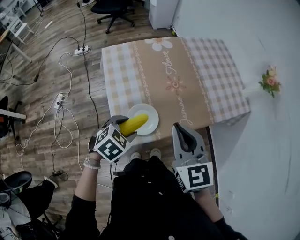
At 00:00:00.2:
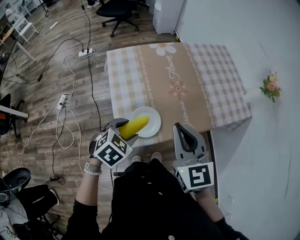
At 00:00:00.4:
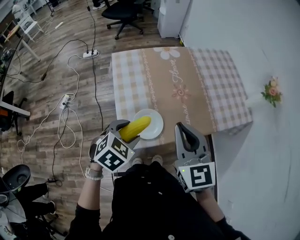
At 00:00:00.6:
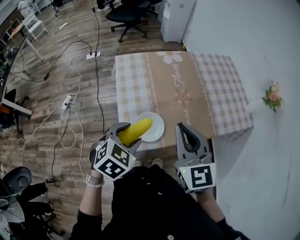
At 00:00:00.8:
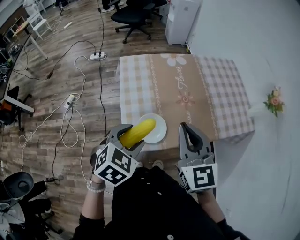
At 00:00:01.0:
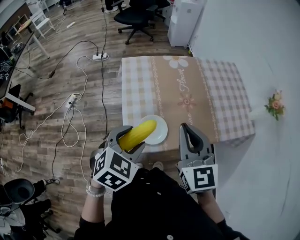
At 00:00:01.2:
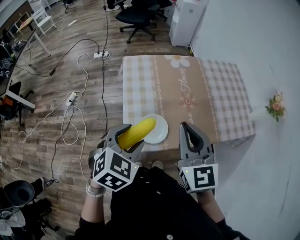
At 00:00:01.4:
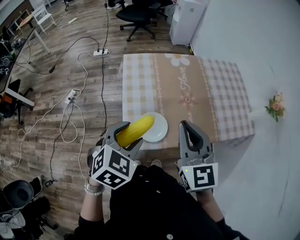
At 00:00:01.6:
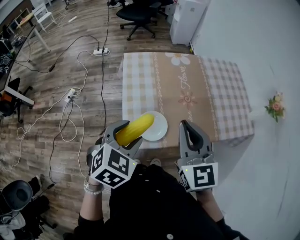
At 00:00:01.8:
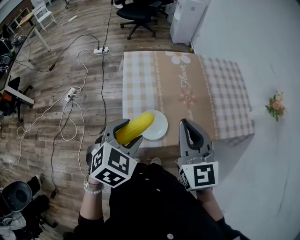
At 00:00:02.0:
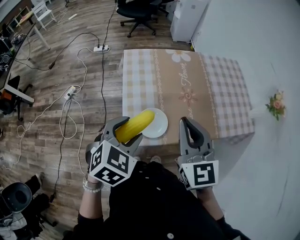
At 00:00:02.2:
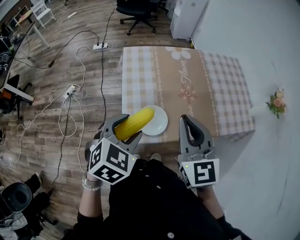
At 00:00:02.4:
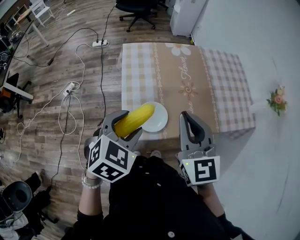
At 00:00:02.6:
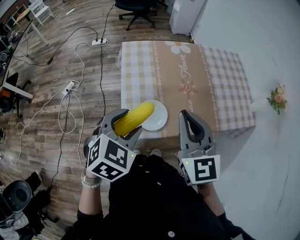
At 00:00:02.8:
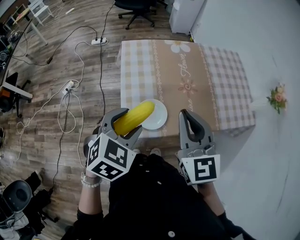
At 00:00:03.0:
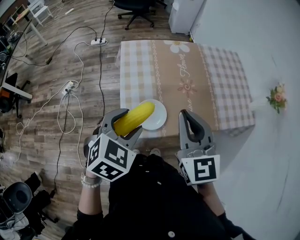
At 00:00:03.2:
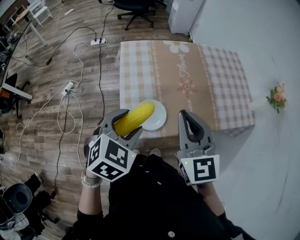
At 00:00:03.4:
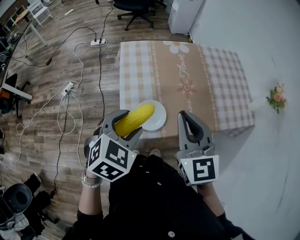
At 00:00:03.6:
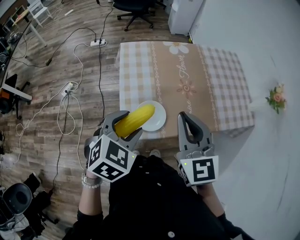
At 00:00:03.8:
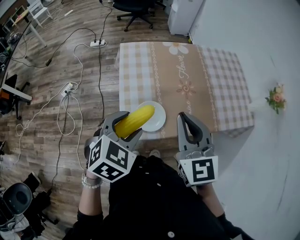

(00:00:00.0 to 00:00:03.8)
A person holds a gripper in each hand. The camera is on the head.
00:00:00.0 - 00:00:01.2: The left gripper is displaced upward by some 15 cm, and changes its angle by roughly 20 degrees. Meanwhile the right gripper moves roughly 5 cm.
00:00:01.2 - 00:00:03.8: Neither gripper changes place.

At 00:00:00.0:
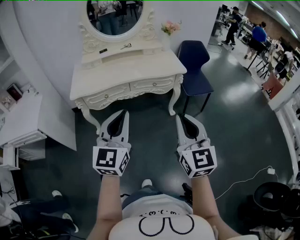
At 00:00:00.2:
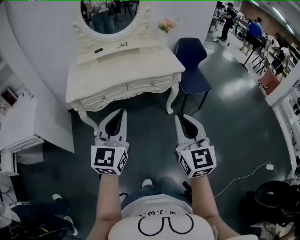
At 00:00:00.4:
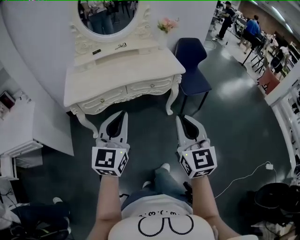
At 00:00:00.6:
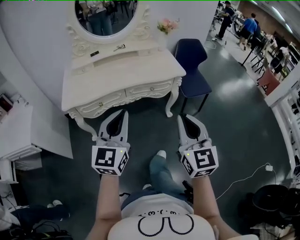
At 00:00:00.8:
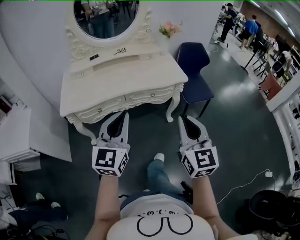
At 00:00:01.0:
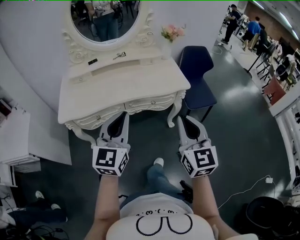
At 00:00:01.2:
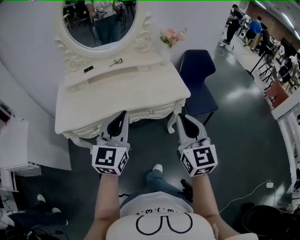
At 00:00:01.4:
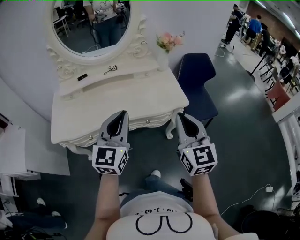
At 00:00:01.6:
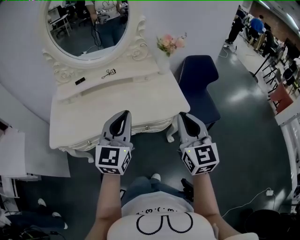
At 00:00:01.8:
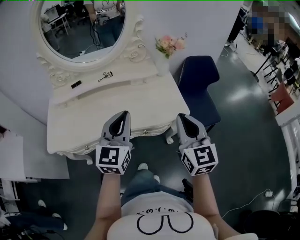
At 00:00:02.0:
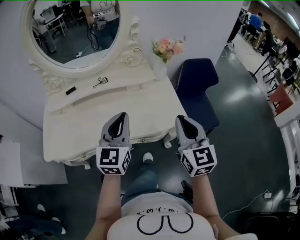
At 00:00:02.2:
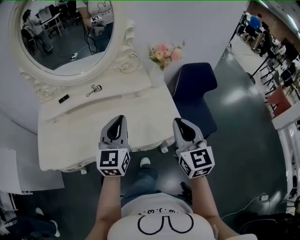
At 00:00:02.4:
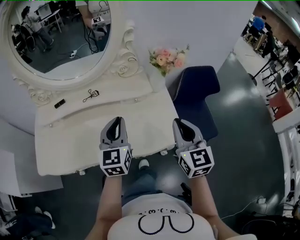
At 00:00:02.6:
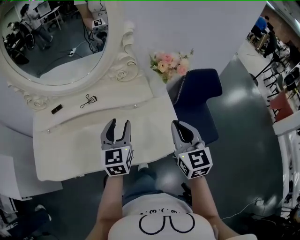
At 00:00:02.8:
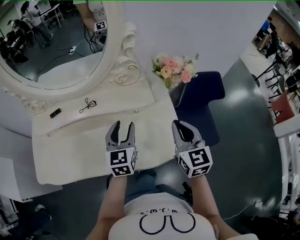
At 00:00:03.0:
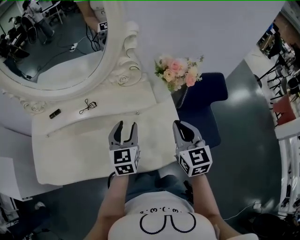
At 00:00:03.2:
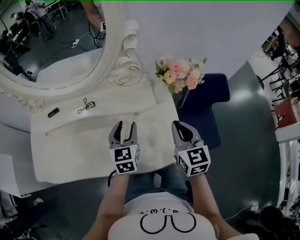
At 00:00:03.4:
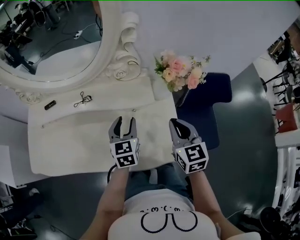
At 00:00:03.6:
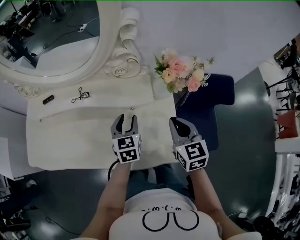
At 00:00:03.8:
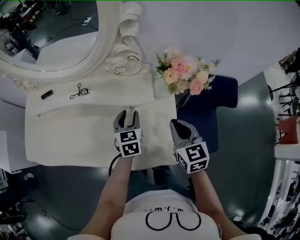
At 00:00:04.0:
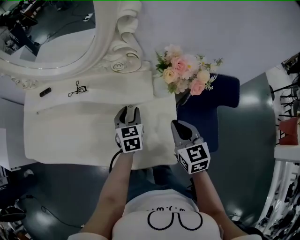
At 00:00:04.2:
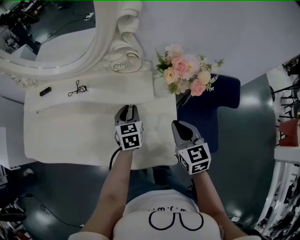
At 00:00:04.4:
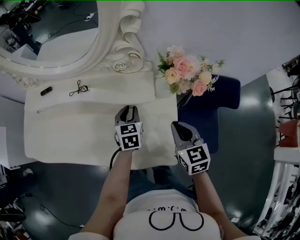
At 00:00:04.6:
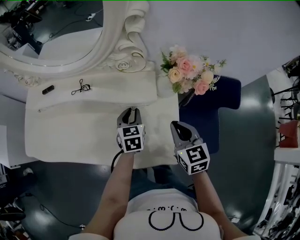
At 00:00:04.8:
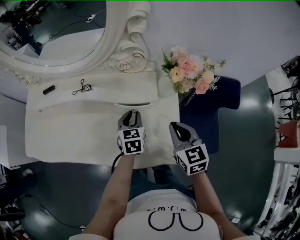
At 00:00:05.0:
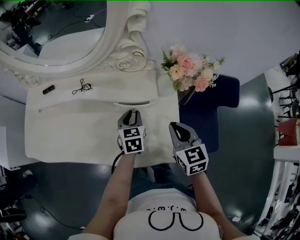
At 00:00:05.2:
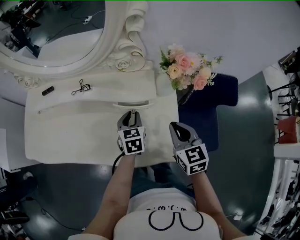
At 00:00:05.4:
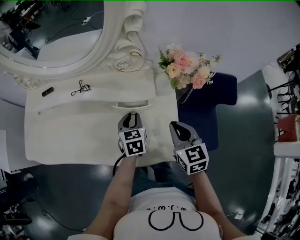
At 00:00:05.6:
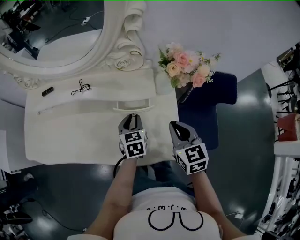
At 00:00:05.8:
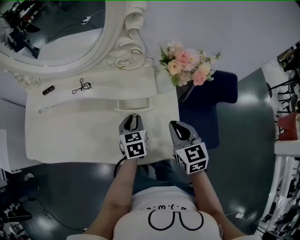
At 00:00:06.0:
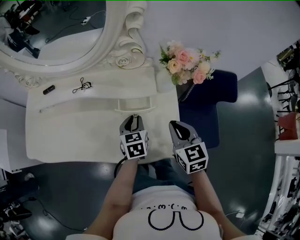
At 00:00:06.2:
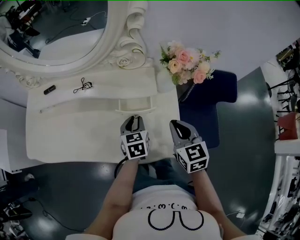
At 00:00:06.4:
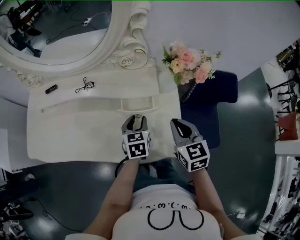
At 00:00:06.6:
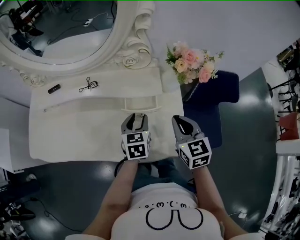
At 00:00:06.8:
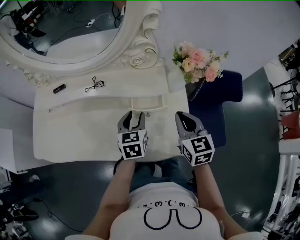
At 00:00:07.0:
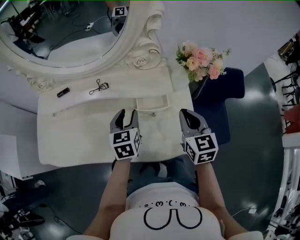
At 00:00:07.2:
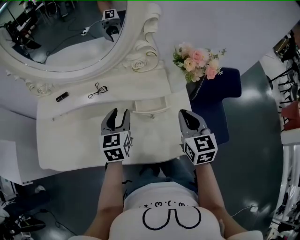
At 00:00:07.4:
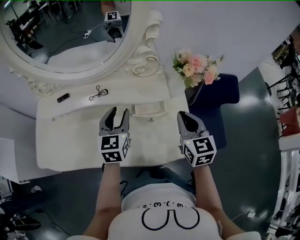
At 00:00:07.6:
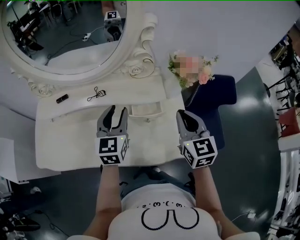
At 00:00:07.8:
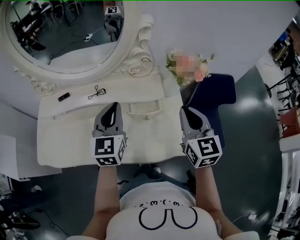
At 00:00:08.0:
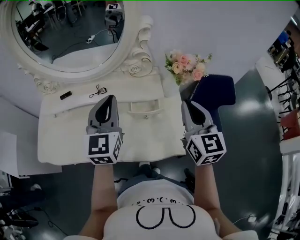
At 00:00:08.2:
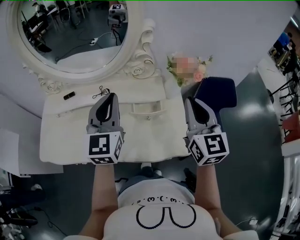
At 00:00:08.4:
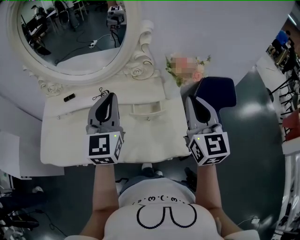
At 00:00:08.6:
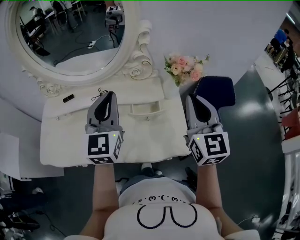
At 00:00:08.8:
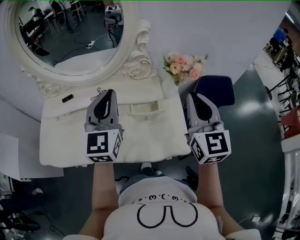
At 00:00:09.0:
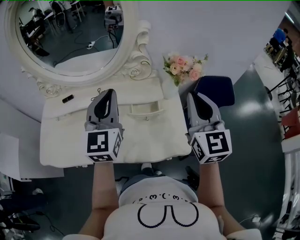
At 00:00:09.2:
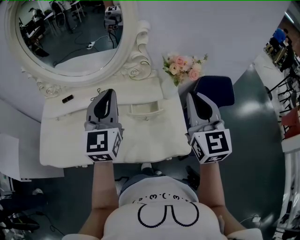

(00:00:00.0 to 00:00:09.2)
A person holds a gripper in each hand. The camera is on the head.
00:00:00.0 - 00:00:01.6: The pair of grippers is taken forward, about 40 cm.
00:00:01.6 - 00:00:03.0: The left gripper is displaced forward and downward by some 35 cm, turns by some 30 degrees, and opens up. Meanwhile the right gripper shifts roughly 30 cm forward.
00:00:03.0 - 00:00:04.6: The right gripper shifts some 10 cm downward, and rotates roughly 20 degrees, while the left gripper moves downward, to the right and forward, roughly 15 cm, rotates roughly 20 degrees, and closes its fingers.
00:00:04.6 - 00:00:06.2: The left gripper is displaced backward by approximately 5 cm.
00:00:06.2 - 00:00:07.6: The left gripper shifts approximately 20 cm upward and to the left, and turns by about 30 degrees, while the right gripper travels upward by approximately 10 cm.
00:00:07.6 - 00:00:09.2: The two grippers go approximately 15 cm upward. The left gripper closes up.

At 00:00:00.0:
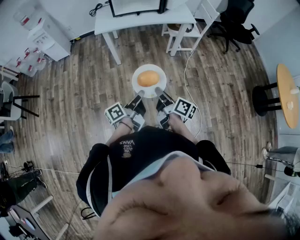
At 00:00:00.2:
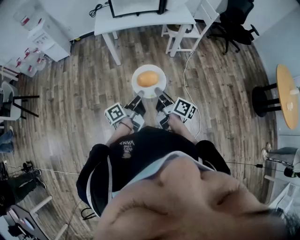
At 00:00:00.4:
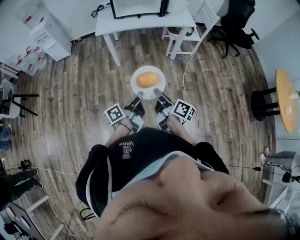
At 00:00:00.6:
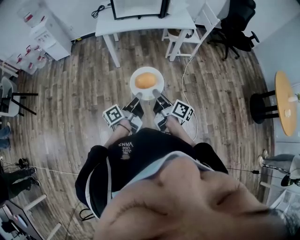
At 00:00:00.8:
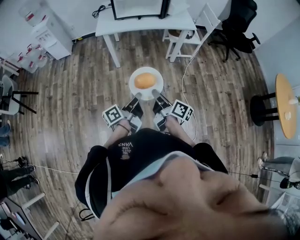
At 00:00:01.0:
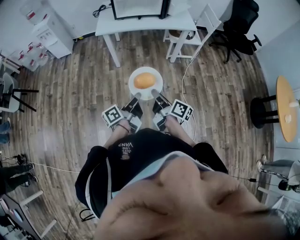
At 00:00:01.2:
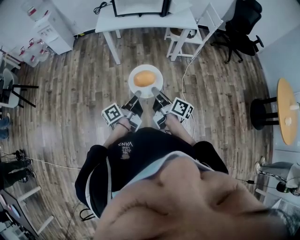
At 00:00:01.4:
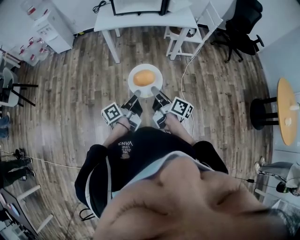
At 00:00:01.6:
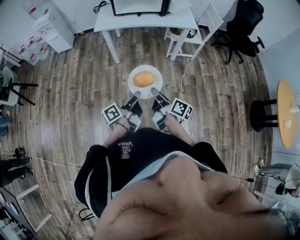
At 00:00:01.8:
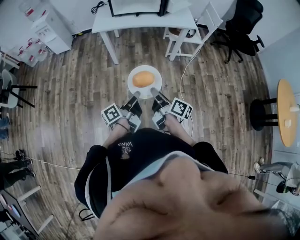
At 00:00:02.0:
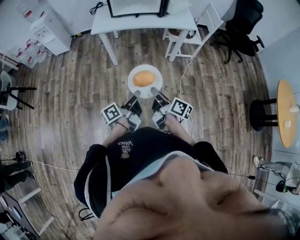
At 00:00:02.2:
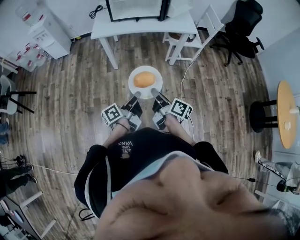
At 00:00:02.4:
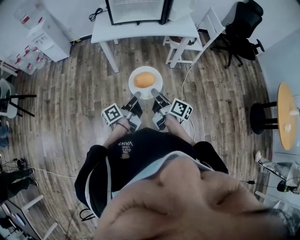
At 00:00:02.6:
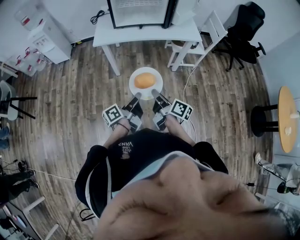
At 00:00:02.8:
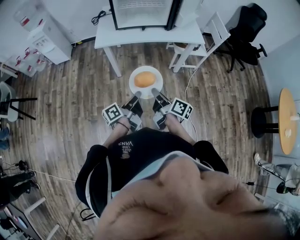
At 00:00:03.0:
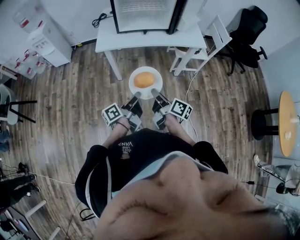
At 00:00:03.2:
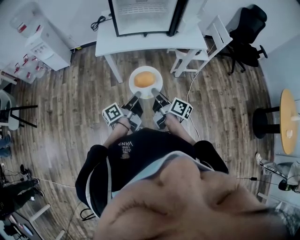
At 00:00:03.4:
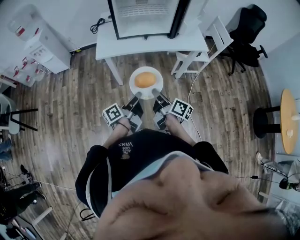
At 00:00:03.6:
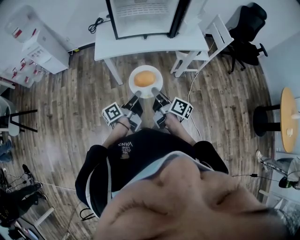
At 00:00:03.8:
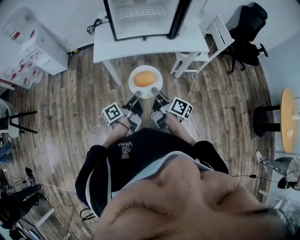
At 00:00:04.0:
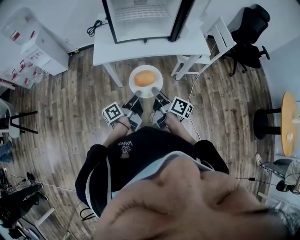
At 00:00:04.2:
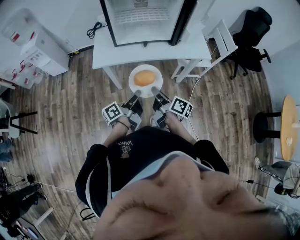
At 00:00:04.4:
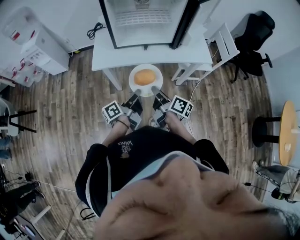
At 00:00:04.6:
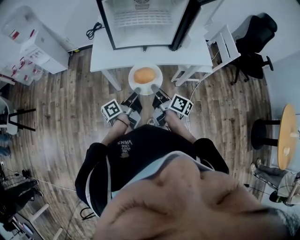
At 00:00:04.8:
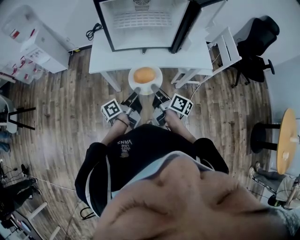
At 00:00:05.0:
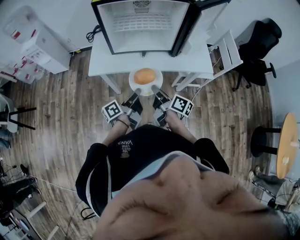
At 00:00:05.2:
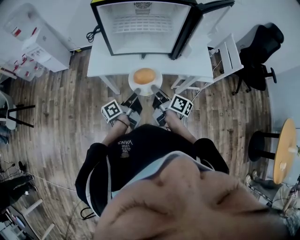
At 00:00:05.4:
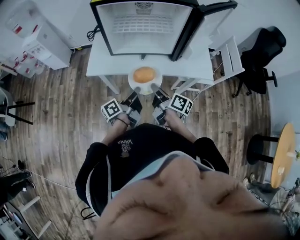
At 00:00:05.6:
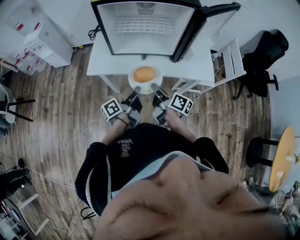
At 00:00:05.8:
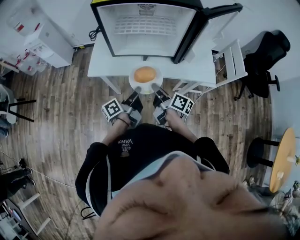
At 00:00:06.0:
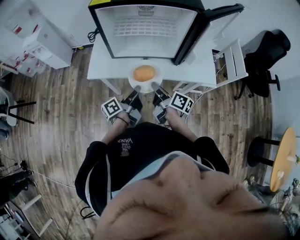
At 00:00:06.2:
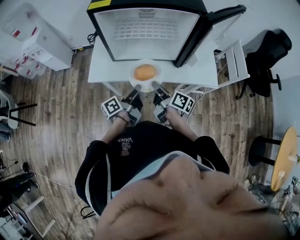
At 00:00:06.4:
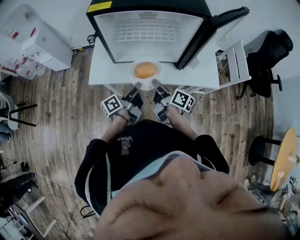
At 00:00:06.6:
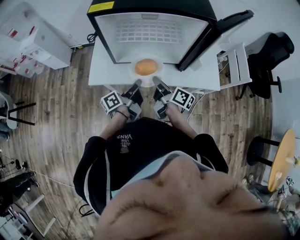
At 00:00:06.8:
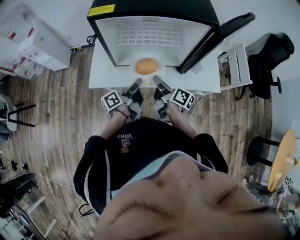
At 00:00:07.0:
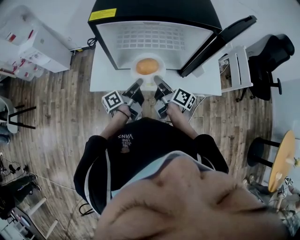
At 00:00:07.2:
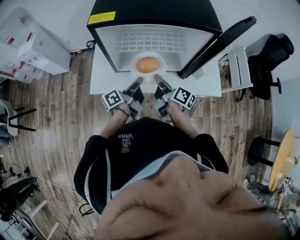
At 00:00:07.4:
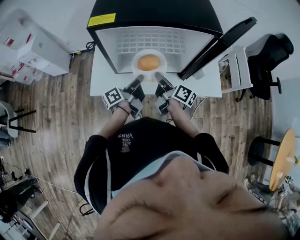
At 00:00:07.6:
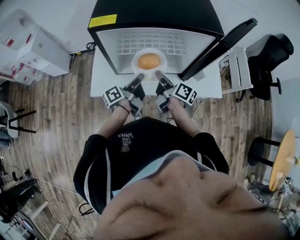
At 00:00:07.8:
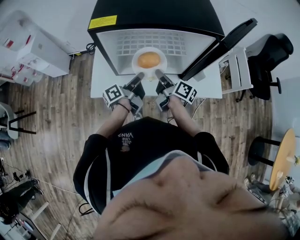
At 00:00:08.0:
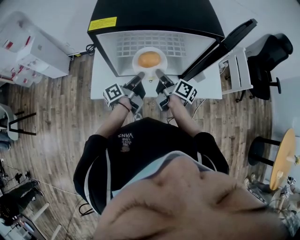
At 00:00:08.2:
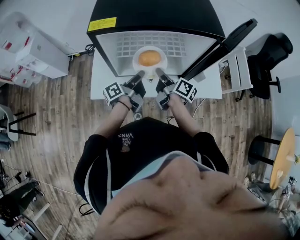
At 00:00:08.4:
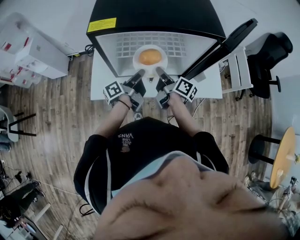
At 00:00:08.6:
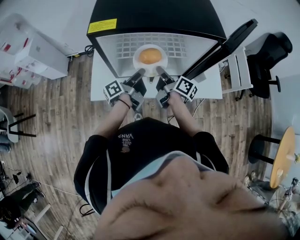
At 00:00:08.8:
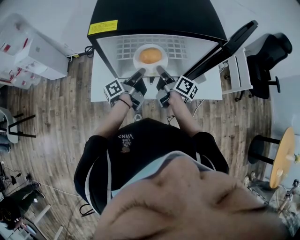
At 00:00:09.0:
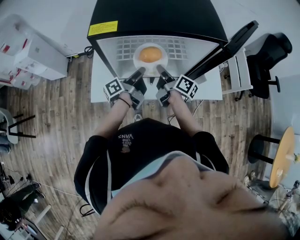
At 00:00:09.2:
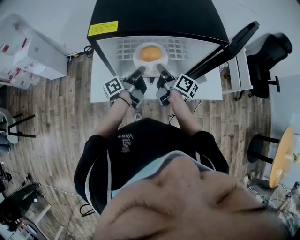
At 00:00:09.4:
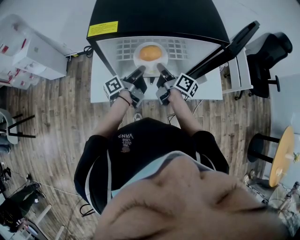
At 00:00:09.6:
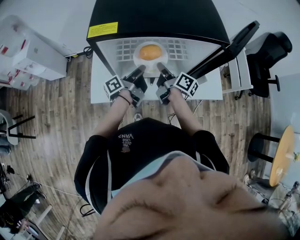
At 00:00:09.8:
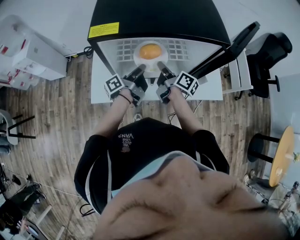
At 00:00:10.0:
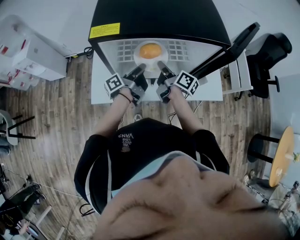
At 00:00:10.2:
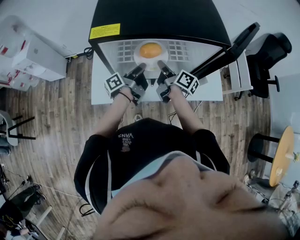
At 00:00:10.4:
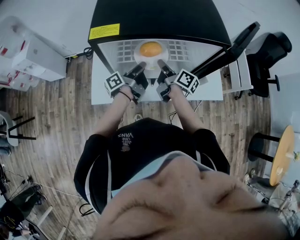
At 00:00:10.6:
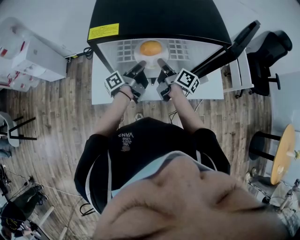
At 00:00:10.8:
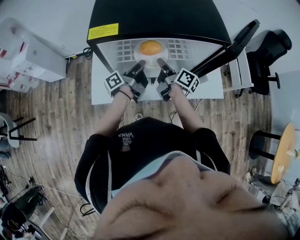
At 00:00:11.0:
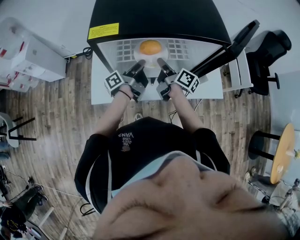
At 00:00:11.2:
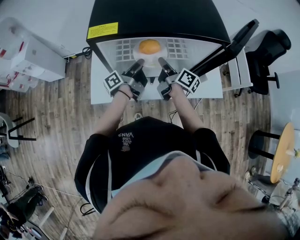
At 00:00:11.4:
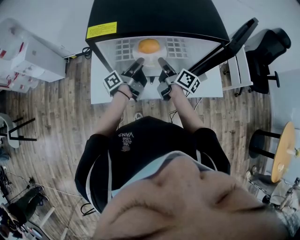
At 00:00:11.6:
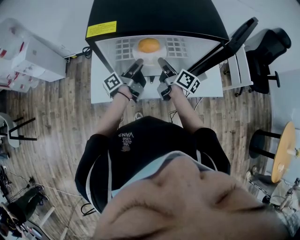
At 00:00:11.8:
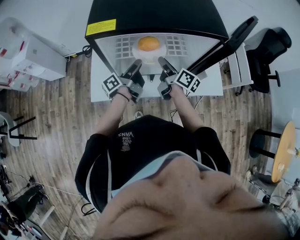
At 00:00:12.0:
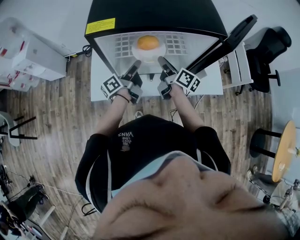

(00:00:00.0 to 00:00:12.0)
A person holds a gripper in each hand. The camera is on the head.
00:00:00.0 - 00:00:01.6: The grippers both shift to the right by roughly 5 cm.
00:00:01.6 - 00:00:03.0: Both grippers move forward, about 20 cm.
00:00:03.0 - 00:00:04.4: The grippers both shift forward by approximately 20 cm.
00:00:04.4 - 00:00:06.0: Both grippers travel together forward, some 15 cm.
00:00:06.0 - 00:00:07.6: Both grippers move forward, roughly 15 cm.
00:00:07.6 - 00:00:09.0: Both grippers travel together forward, approximately 5 cm.
00:00:09.0 - 00:00:10.4: There are only small adjustments of the grippers.
00:00:10.4 - 00:00:12.0: The left gripper opens up.
